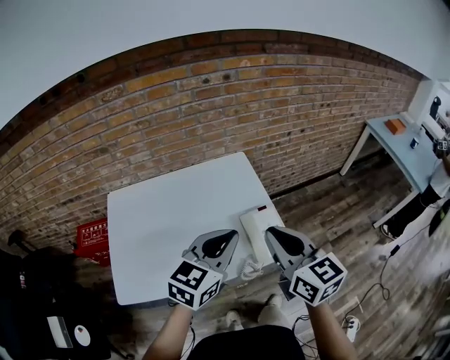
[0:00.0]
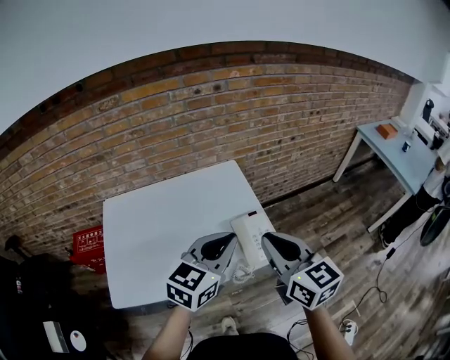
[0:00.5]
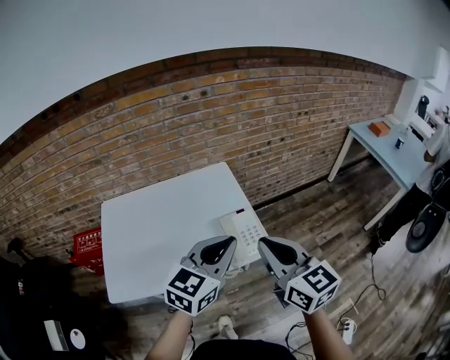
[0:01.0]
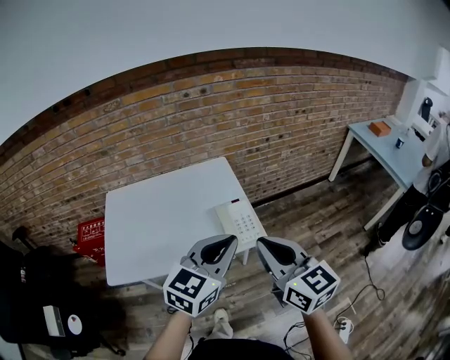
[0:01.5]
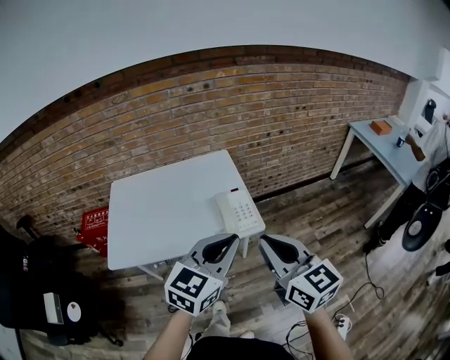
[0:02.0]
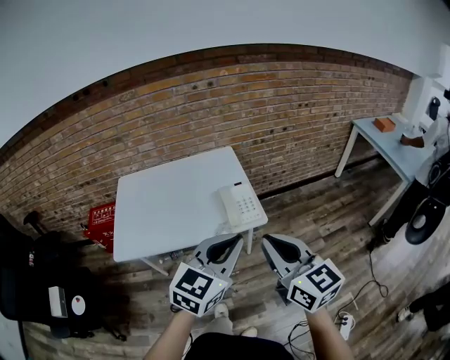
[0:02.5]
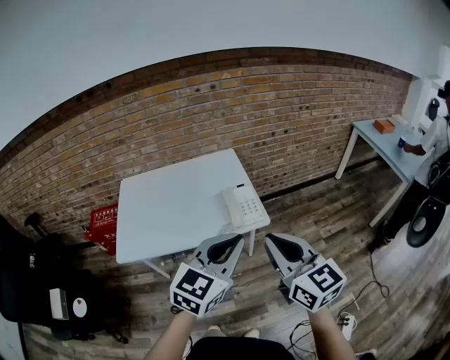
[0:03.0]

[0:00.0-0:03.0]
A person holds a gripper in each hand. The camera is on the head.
0:00.0 to 0:01.5: The left gripper travels backward, to the right and upward by some 20 cm; the right gripper heads backward and to the right, covering roughly 15 cm.
0:01.5 to 0:03.0: Both grippers move backward, about 10 cm.

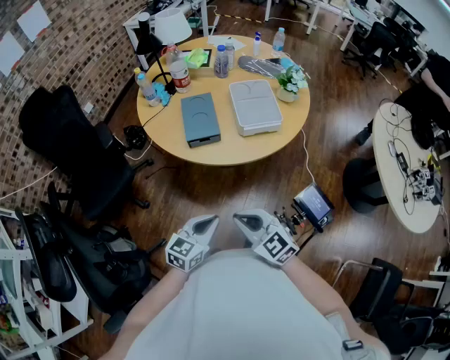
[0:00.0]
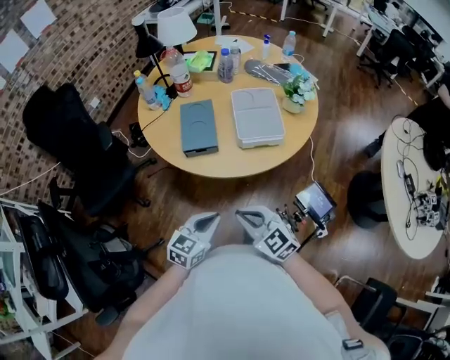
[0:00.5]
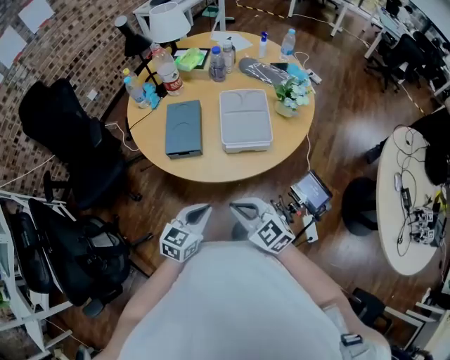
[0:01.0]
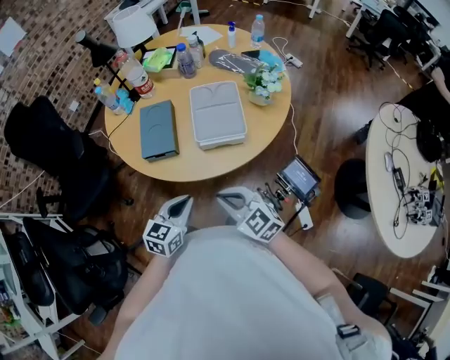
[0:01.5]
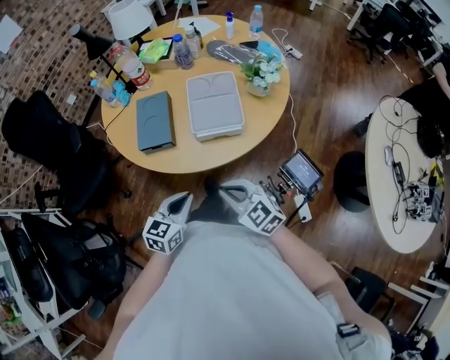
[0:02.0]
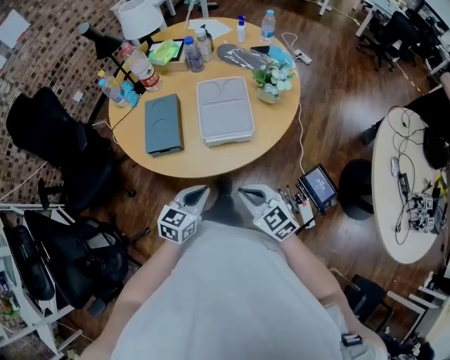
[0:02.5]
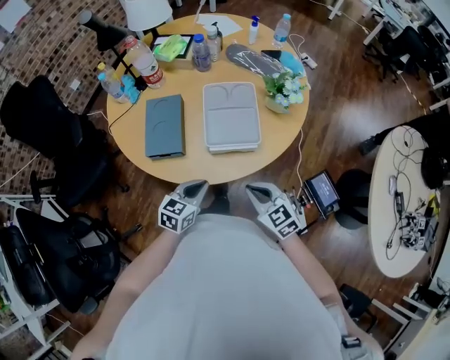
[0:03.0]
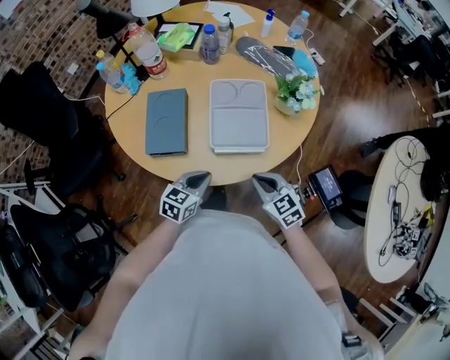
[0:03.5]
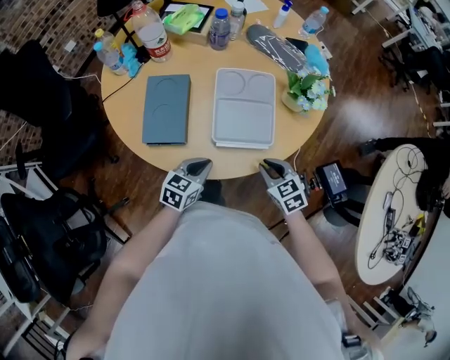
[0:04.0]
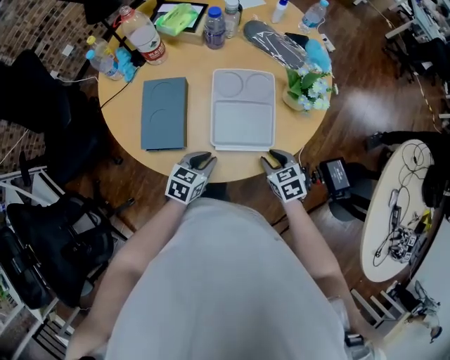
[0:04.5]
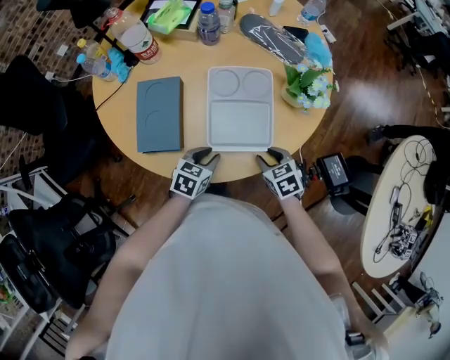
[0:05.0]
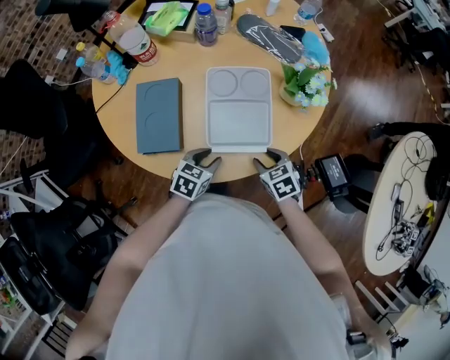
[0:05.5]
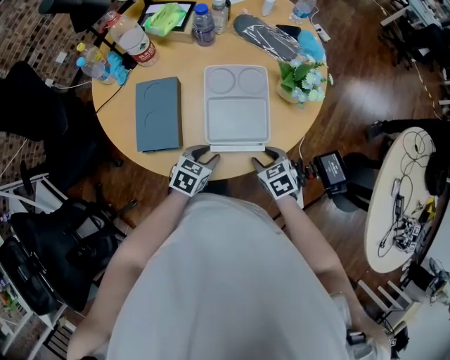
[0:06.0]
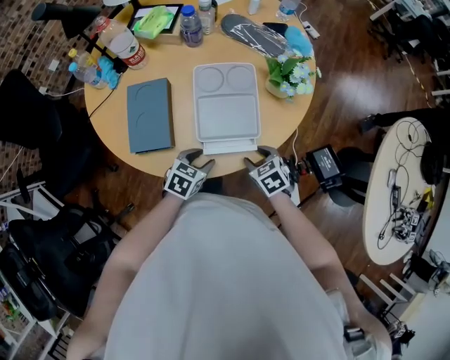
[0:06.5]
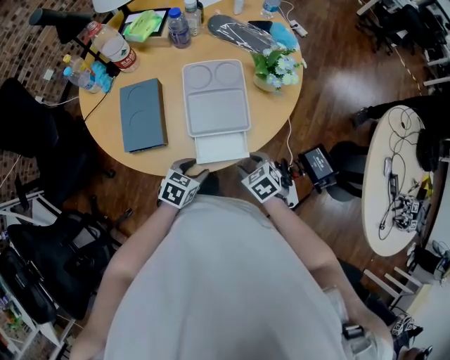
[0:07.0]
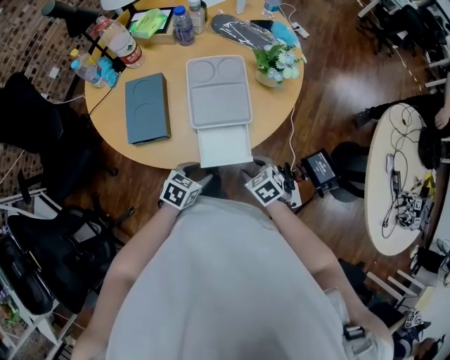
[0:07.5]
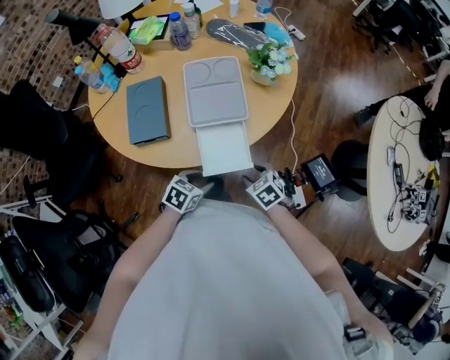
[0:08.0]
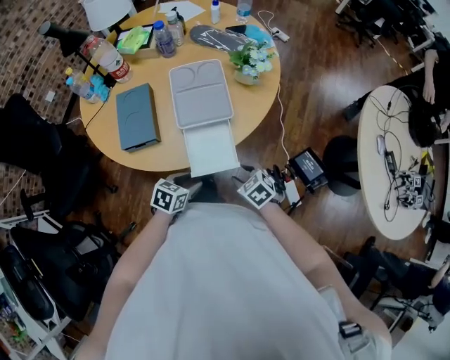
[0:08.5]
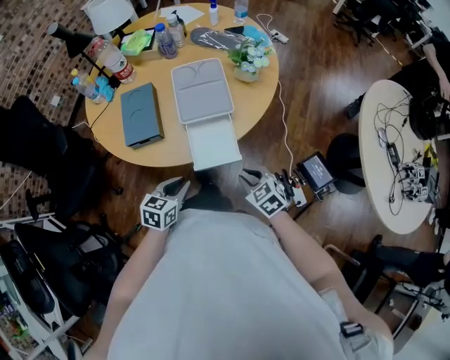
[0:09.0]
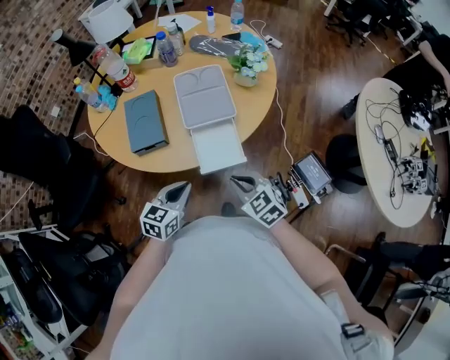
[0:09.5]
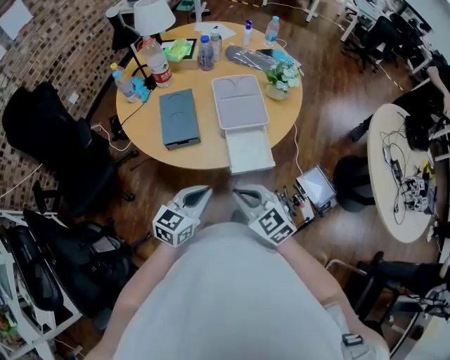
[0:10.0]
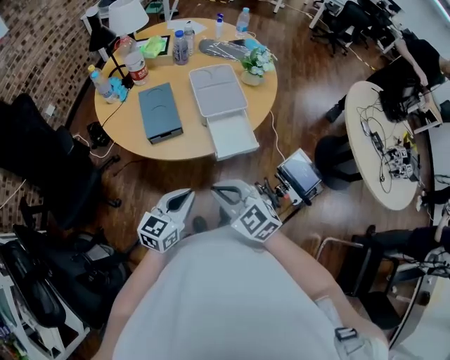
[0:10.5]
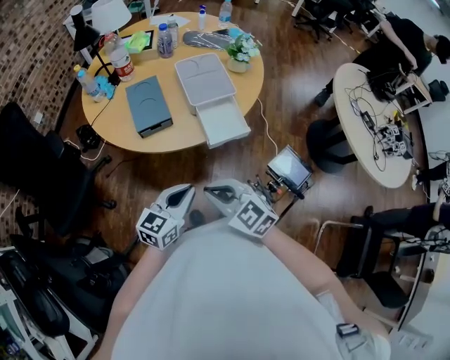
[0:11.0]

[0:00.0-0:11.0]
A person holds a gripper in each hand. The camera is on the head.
0:00.0 to 0:02.0: Both grippers move to the right and forward, approximately 20 cm.
0:02.0 to 0:03.5: The left gripper heads forward and downward, covering approximately 15 cm. The right gripper is displaced forward, downward and to the right by approximately 15 cm.
0:03.5 to 0:05.5: The right gripper moves downward and forward, approximately 10 cm, rotates roughly 20 degrees, and opens, while the left gripper goes about 10 cm forward and downward, and opens.
0:05.5 to 0:07.5: The two grippers go roughly 10 cm backward.
0:07.5 to 0:09.0: The left gripper moves backward and upward, about 10 cm, and closes its fingers. The right gripper heads backward, covering approximately 10 cm, and closes its fingers.
0:09.0 to 0:11.0: The right gripper moves to the left, upward and backward, some 30 cm, and swivels some 20 degrees; the left gripper travels backward, upward and to the left by roughly 15 cm, and swivels approximately 30 degrees.

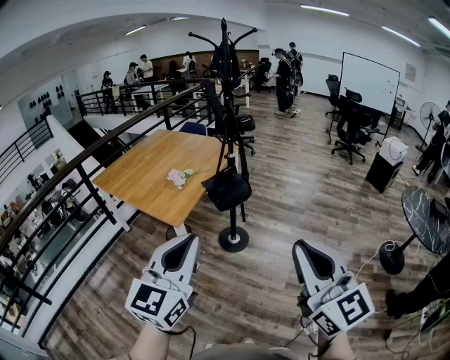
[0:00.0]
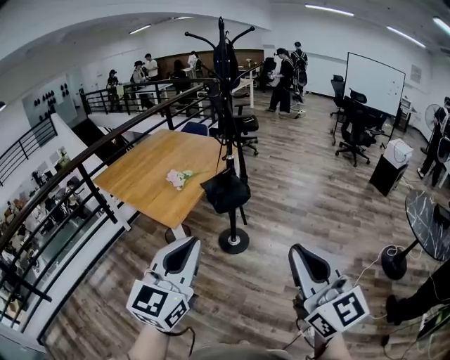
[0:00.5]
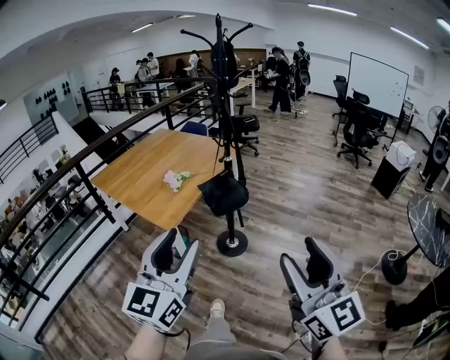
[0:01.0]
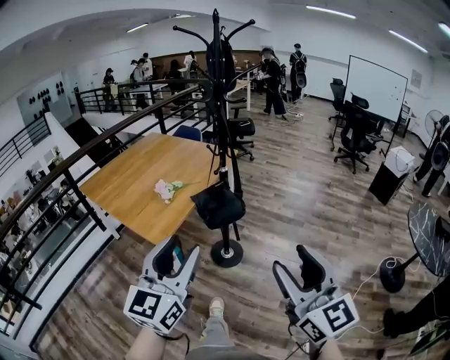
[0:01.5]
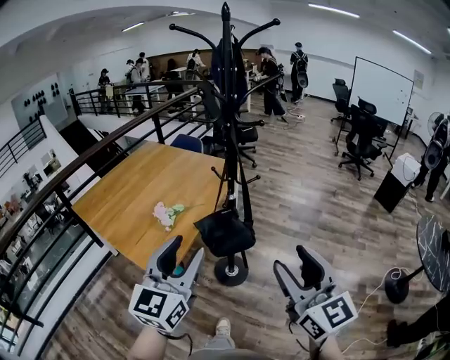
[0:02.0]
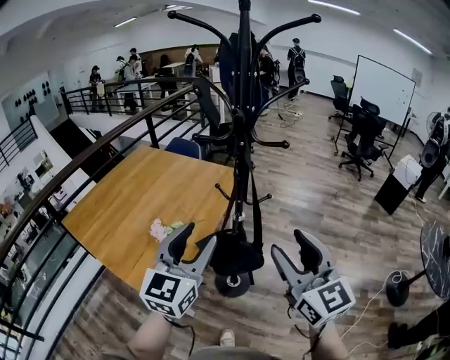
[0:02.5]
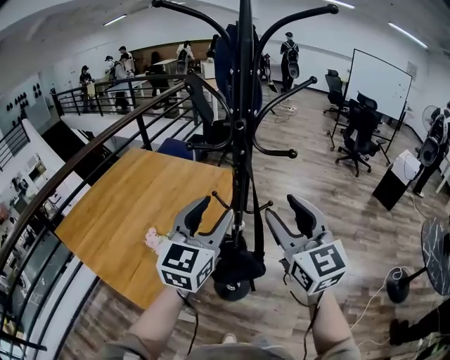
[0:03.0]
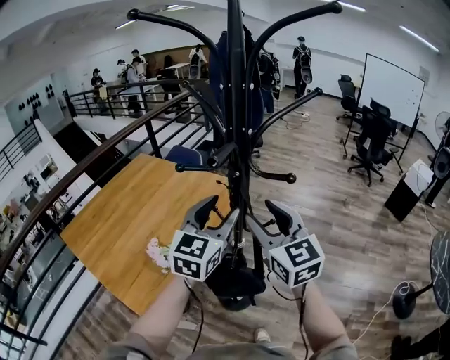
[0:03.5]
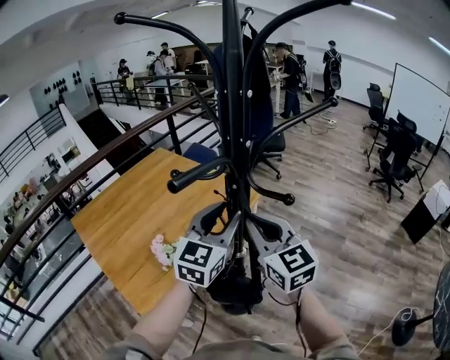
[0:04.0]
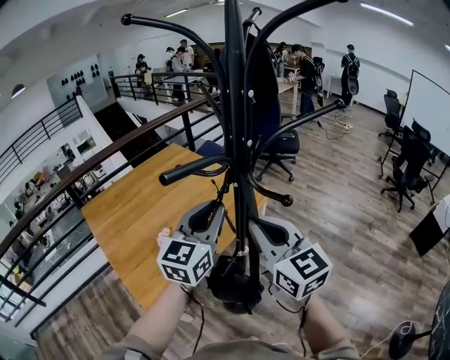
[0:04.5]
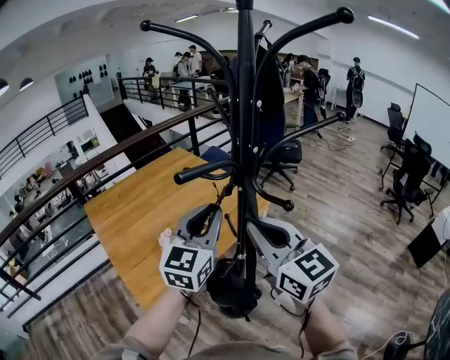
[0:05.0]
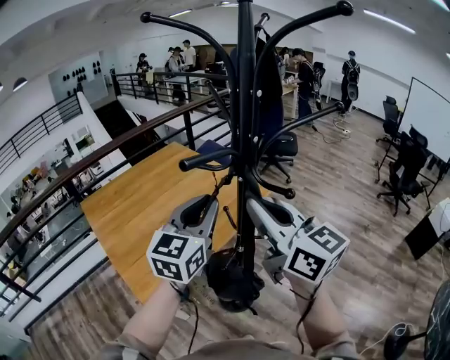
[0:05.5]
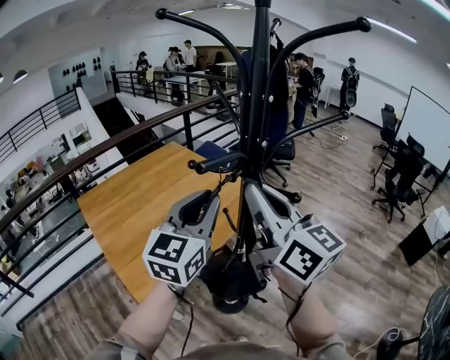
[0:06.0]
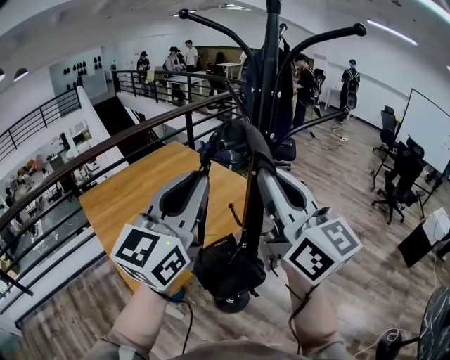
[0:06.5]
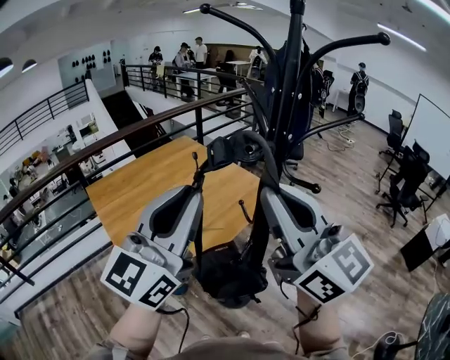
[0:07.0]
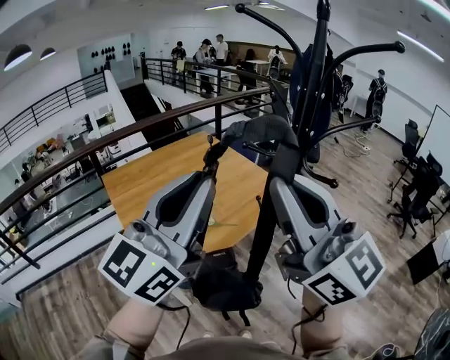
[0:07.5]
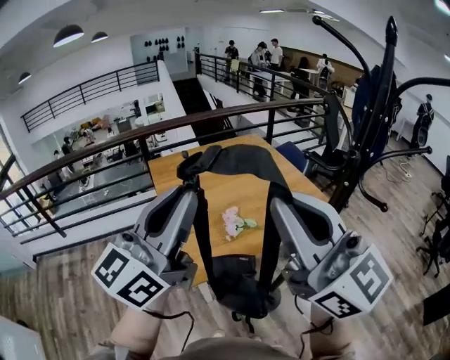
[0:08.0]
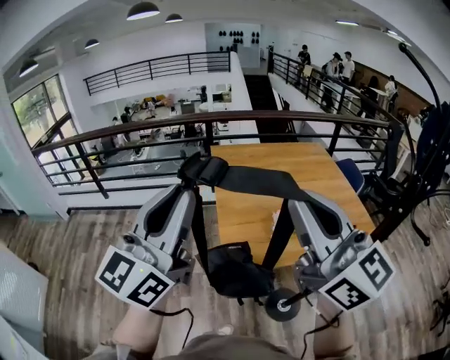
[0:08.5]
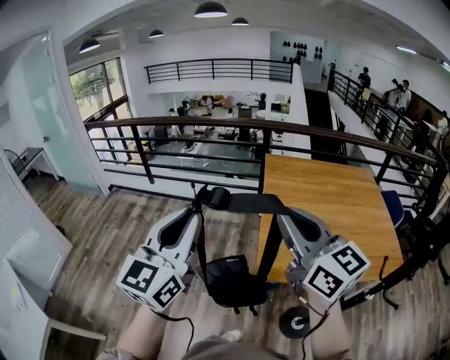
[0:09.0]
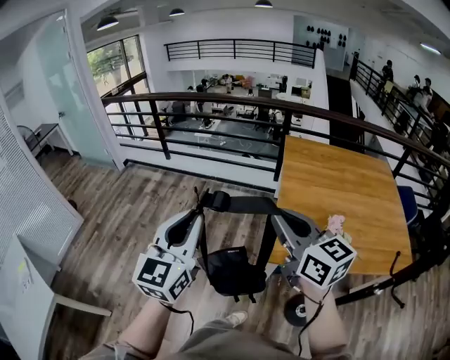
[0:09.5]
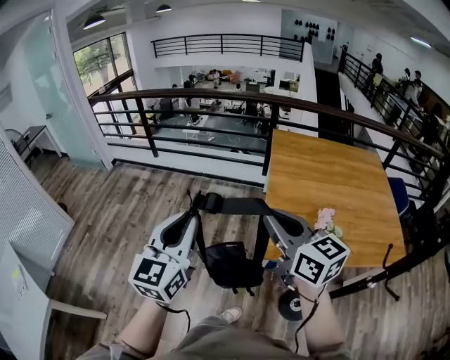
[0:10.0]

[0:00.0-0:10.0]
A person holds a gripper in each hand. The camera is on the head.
0:00.0 to 0:02.0: The two grippers go roughly 30 cm forward. The left gripper opens, while the right gripper opens up.
0:02.0 to 0:04.0: Both grippers travel together forward, about 35 cm. The right gripper closes.
0:04.0 to 0:06.0: The left gripper travels upward and to the left by about 10 cm. Meanwhile the right gripper shifts roughly 15 cm upward, and swivels approximately 30 degrees.
0:06.0 to 0:08.0: The right gripper shifts by some 20 cm, and rotates about 30 degrees. Meanwhile the left gripper shifts by approximately 25 cm, and swivels some 30 degrees.
0:08.0 to 0:10.0: The left gripper ends up about 30 cm from where it was, and turns by roughly 60 degrees. The right gripper moves about 30 cm, and turns by some 50 degrees.

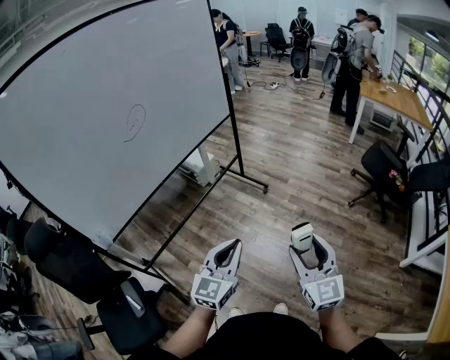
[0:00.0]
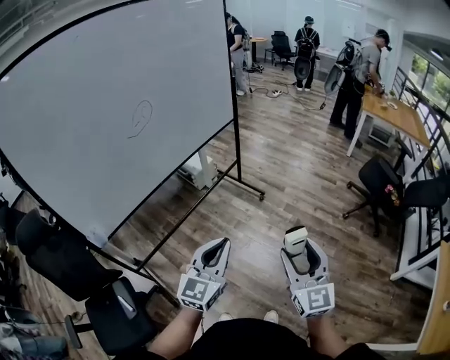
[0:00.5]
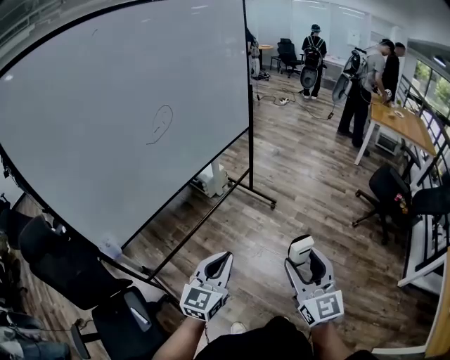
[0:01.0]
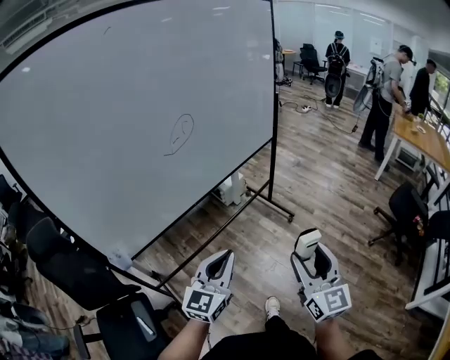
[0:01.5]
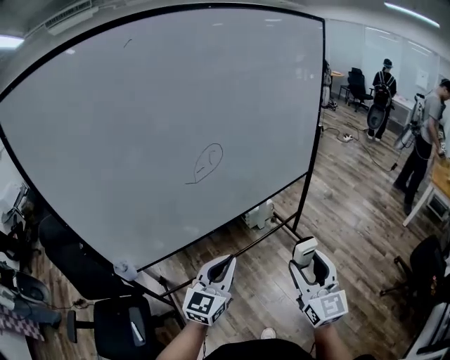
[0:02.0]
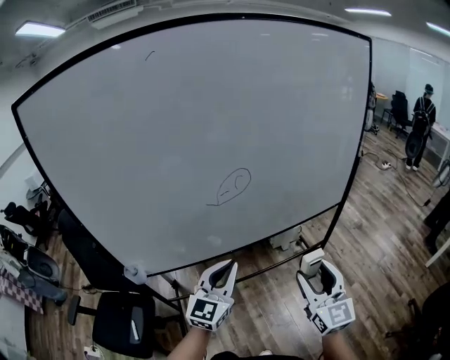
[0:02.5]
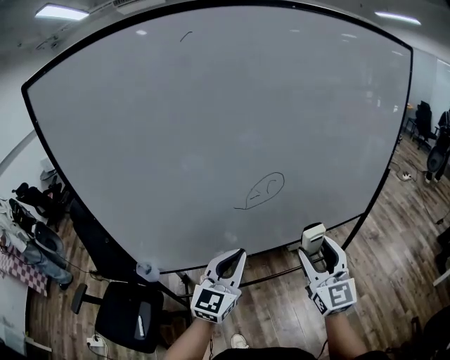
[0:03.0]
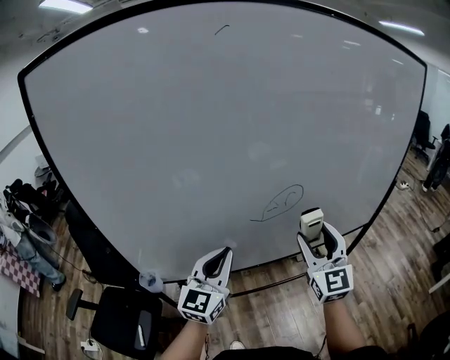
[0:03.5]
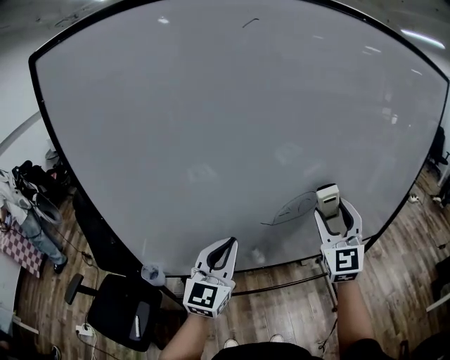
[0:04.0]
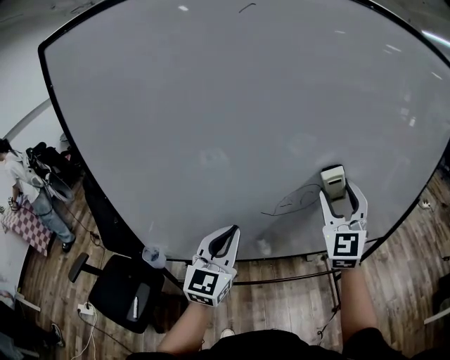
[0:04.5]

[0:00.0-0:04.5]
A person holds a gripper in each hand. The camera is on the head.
0:00.0 to 0:02.0: Both grippers travel together forward and to the left, approximately 35 cm. The left gripper turns by some 20 degrees. The right gripper rotates roughly 20 degrees.
0:02.0 to 0:04.5: The right gripper goes some 40 cm forward, and swivels approximately 30 degrees; the left gripper moves forward, to the left and upward, some 25 cm, and swivels about 30 degrees.
